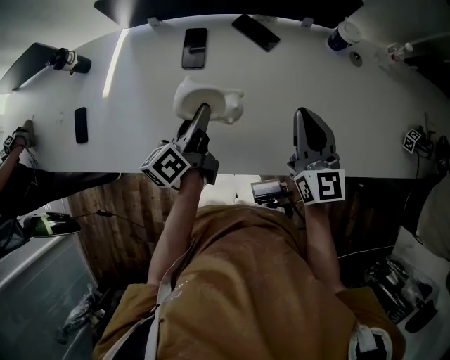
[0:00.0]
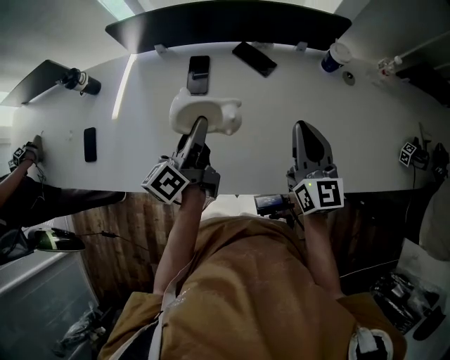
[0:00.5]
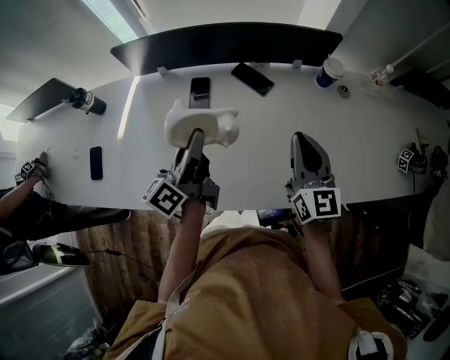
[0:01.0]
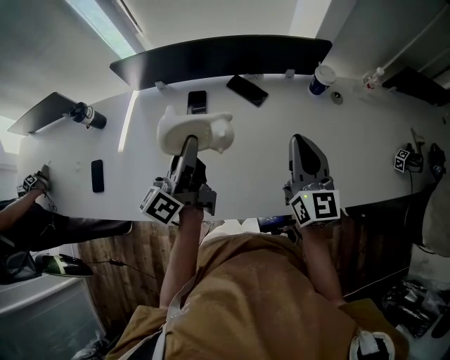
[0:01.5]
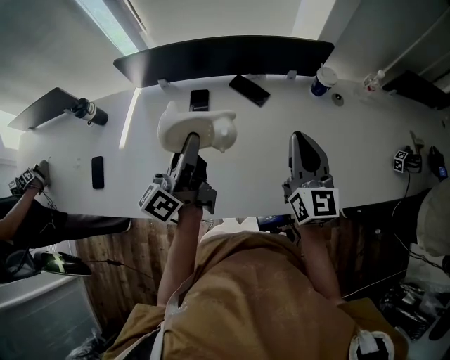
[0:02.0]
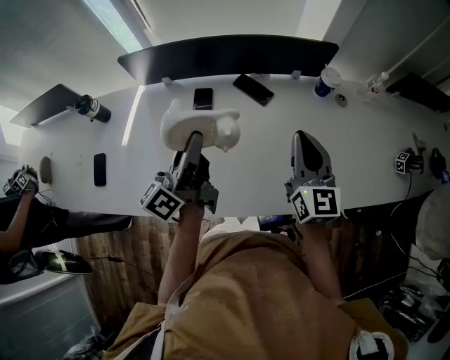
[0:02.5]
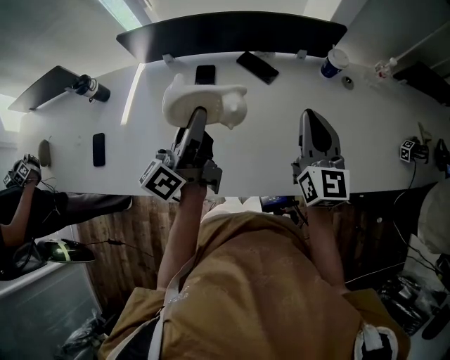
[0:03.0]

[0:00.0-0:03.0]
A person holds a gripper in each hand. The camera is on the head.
0.0 to 1.5 s: The left gripper travels upward by about 15 cm, and rotates some 20 degrees. The right gripper heads upward, covering roughly 5 cm.
1.5 to 3.0 s: There are only small adjustments of the grippers.

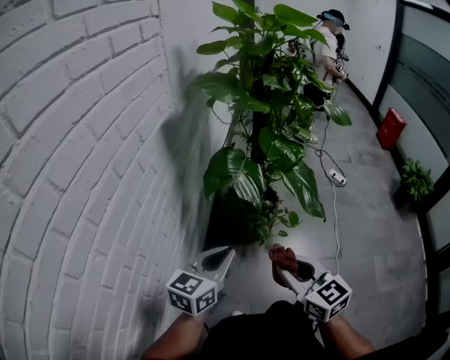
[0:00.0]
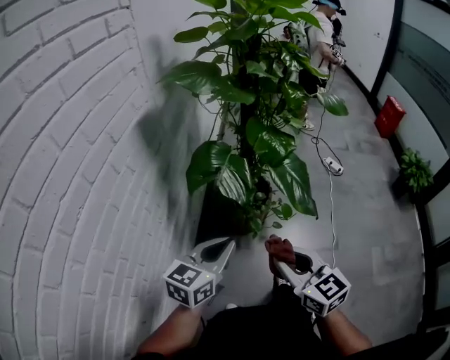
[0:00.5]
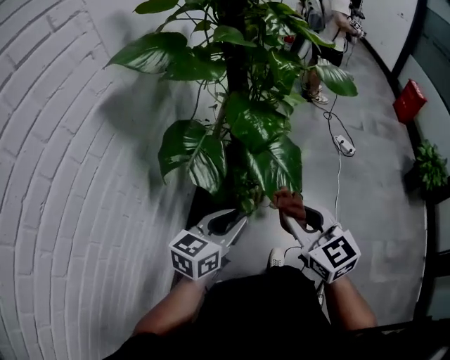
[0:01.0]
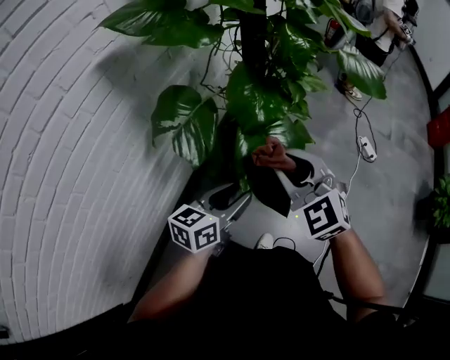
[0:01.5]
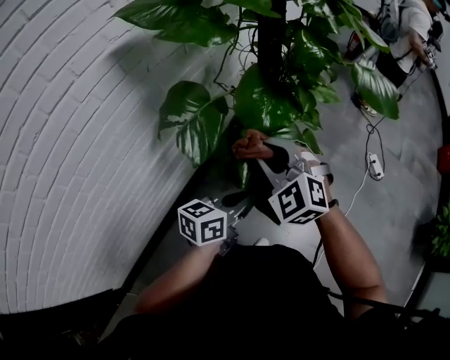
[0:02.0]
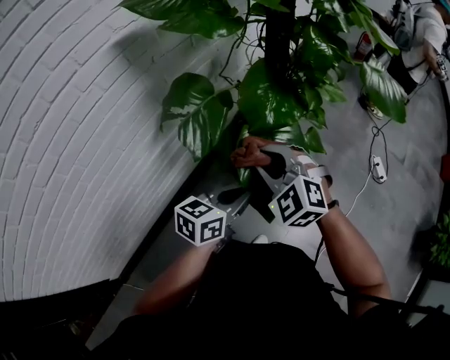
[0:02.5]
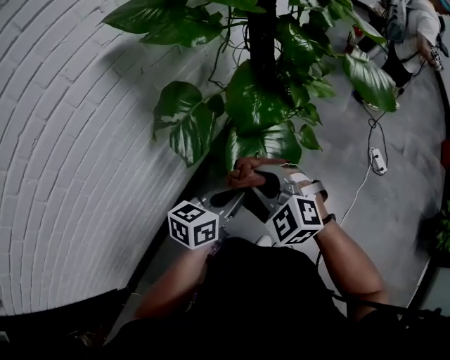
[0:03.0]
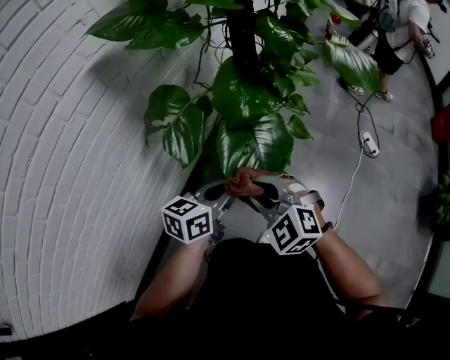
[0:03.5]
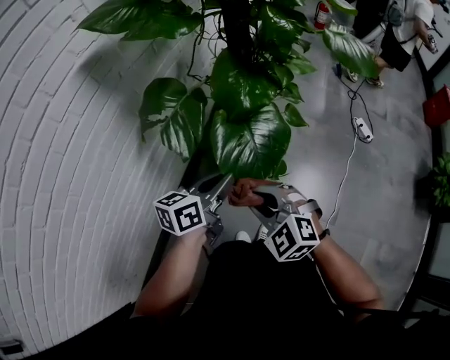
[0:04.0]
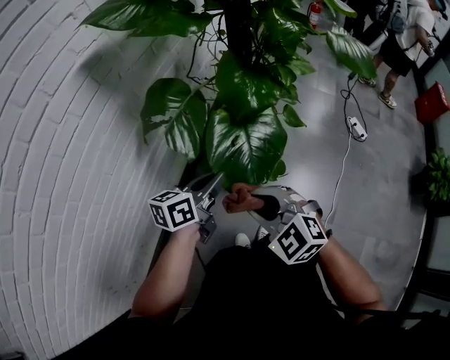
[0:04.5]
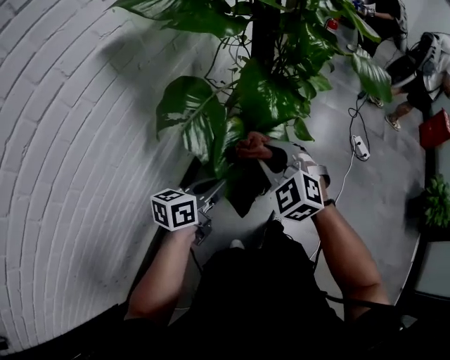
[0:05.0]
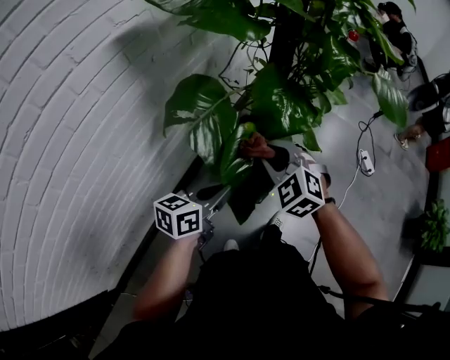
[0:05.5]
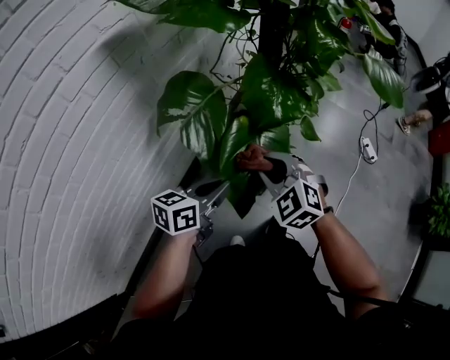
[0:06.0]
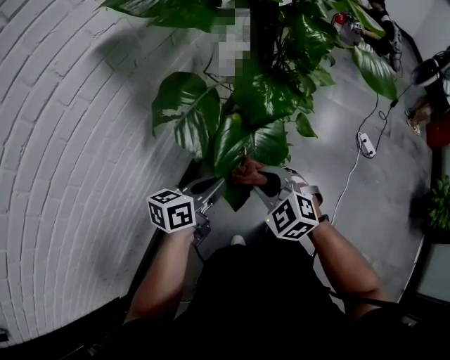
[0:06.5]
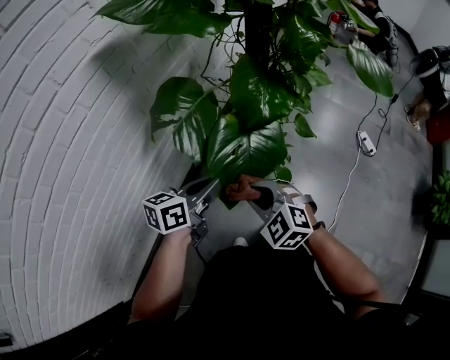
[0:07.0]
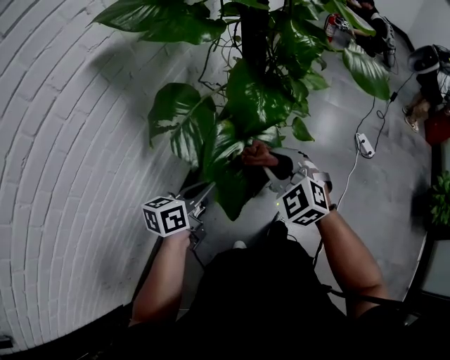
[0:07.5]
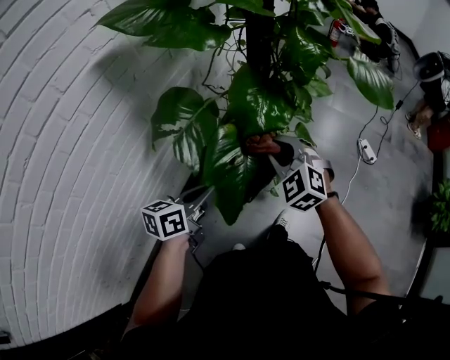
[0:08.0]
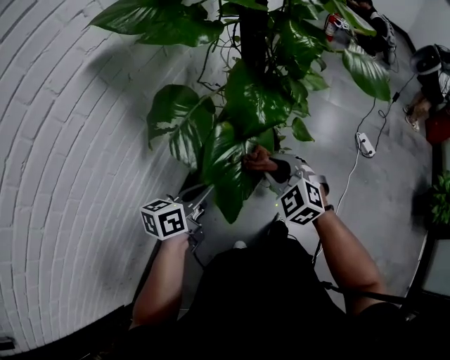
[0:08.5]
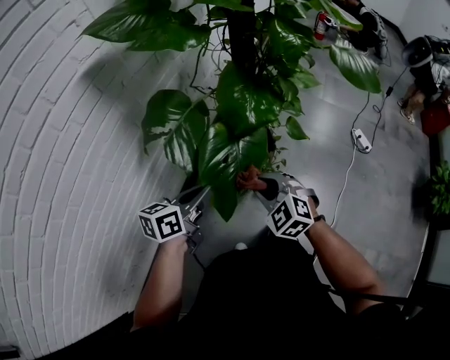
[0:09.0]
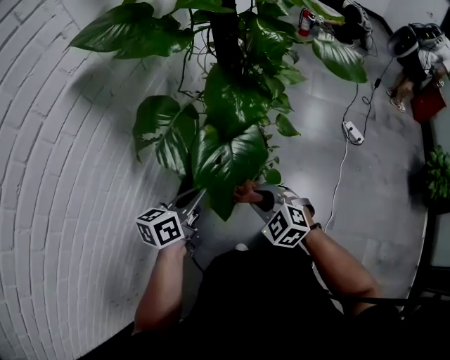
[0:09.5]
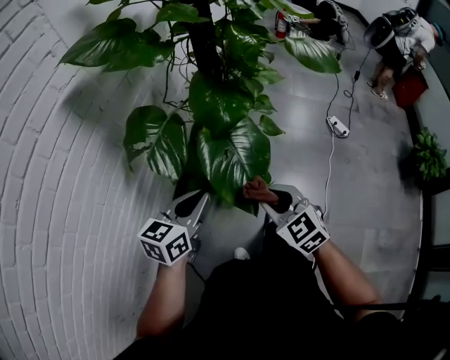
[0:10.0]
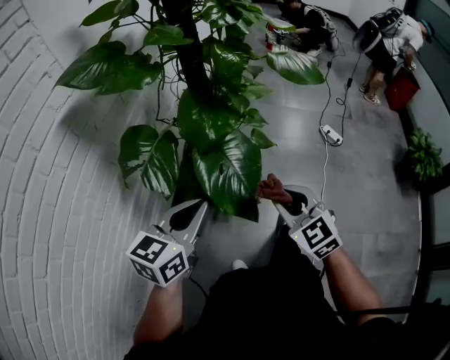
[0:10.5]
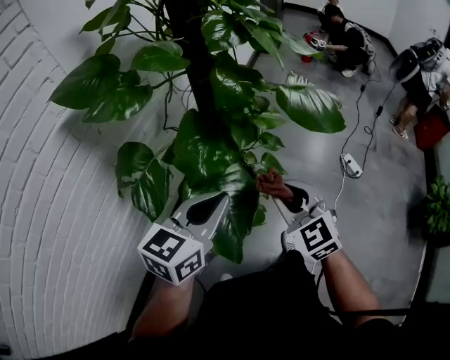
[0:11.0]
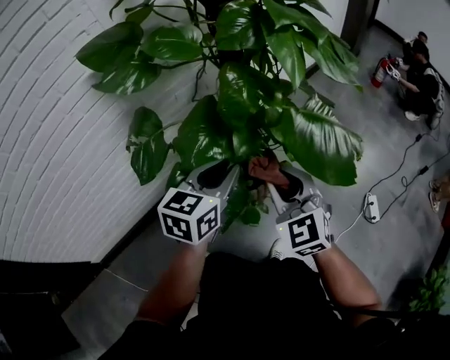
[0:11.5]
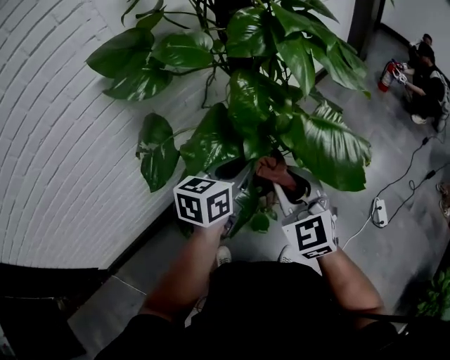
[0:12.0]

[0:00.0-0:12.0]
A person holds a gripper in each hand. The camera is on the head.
0.0 to 2.0 s: The right gripper heads forward and to the right, covering some 30 cm, and rotates around the line of its fingers by some 60 degrees, counterclockwise from behind. The left gripper is displaced to the right and forward by some 30 cm, rotates about 20 degrees, and opens, then closes again.
2.0 to 4.0 s: The right gripper goes roughly 15 cm backward and downward.
4.0 to 6.0 s: The right gripper travels forward by about 10 cm; the left gripper goes some 5 cm to the left.
6.0 to 8.0 s: The right gripper shifts approximately 5 cm forward.
8.0 to 10.0 s: The left gripper ends up approximately 5 cm from where it was, and changes its angle by about 20 degrees. Meanwhile the right gripper moves backward, approximately 15 cm, and rotates about 30 degrees.
10.0 to 12.0 s: The right gripper ends up roughly 30 cm from where it was, and swivels about 30 degrees; the left gripper shifts by about 30 cm, and changes its angle by some 30 degrees.

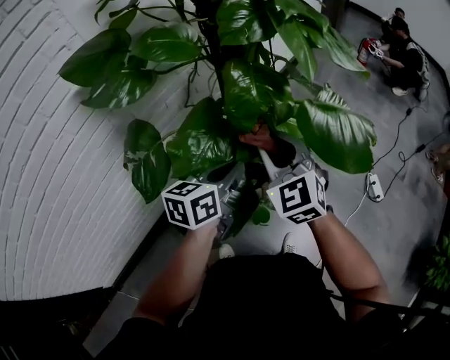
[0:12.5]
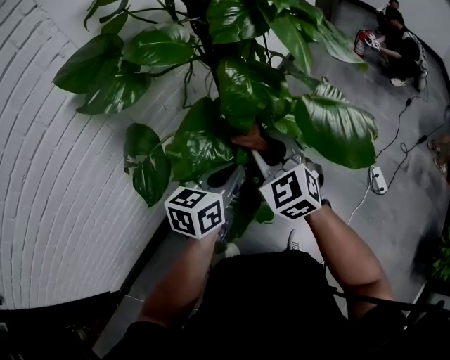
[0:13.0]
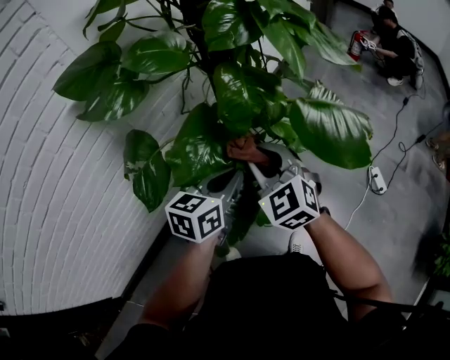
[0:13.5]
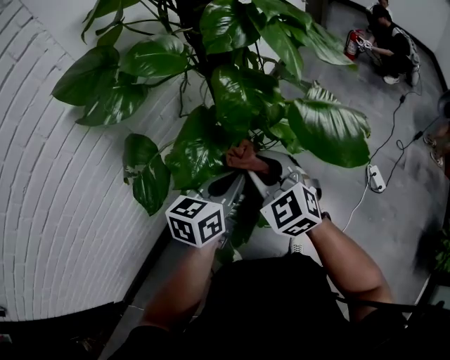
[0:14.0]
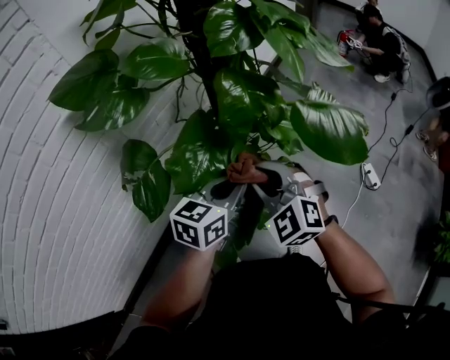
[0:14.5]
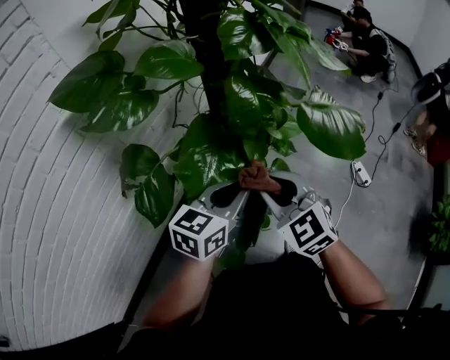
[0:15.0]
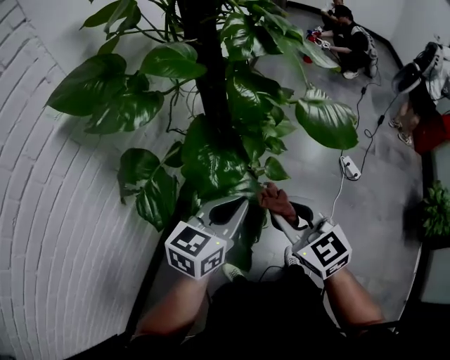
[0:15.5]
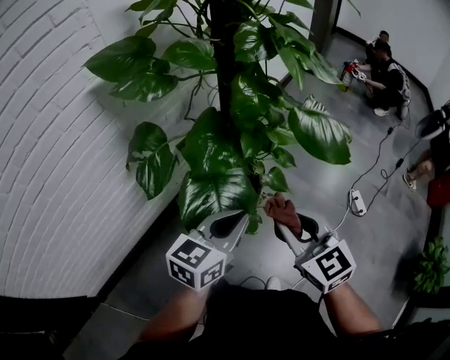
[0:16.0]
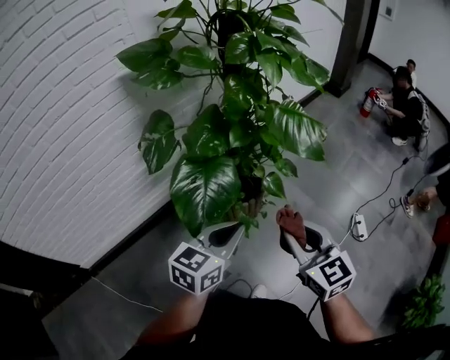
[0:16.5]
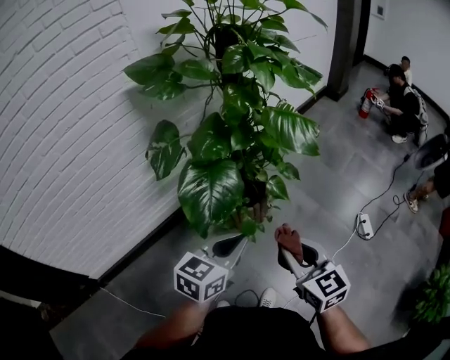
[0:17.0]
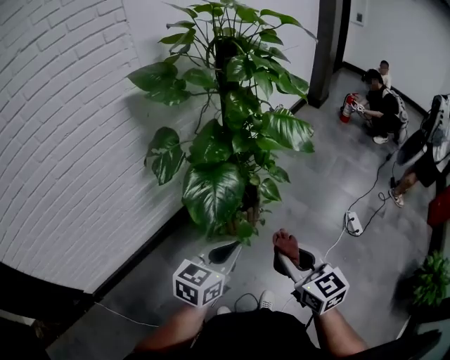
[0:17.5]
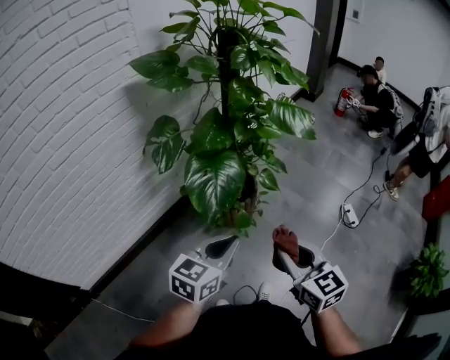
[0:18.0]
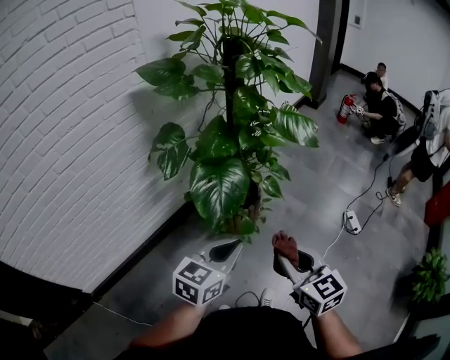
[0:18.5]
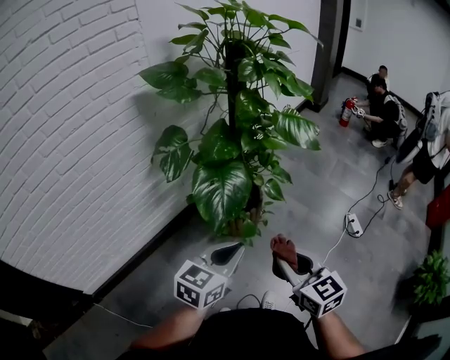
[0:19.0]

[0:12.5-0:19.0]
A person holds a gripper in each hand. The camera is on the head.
12.5 to 14.5 s: The right gripper heads backward, covering about 5 cm.
14.5 to 17.0 s: Both grippers travel together backward and to the right, approximately 30 cm. The right gripper rotates around the line of its fingers by about 40 degrees, clockwise from behind.
17.0 to 19.0 s: Both grippers travel together backward and to the left, approximately 10 cm.

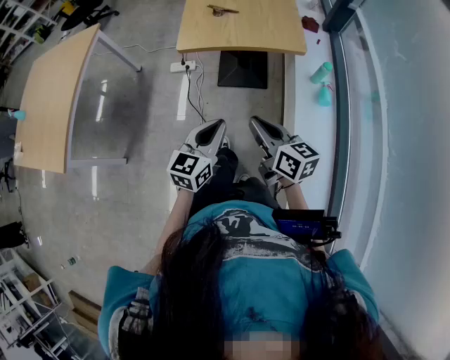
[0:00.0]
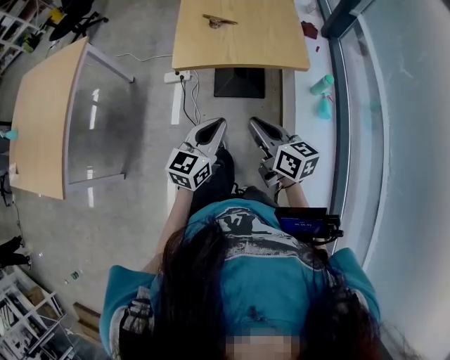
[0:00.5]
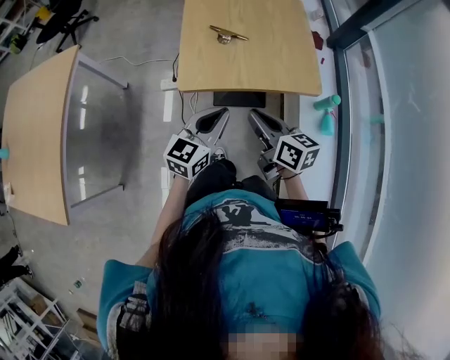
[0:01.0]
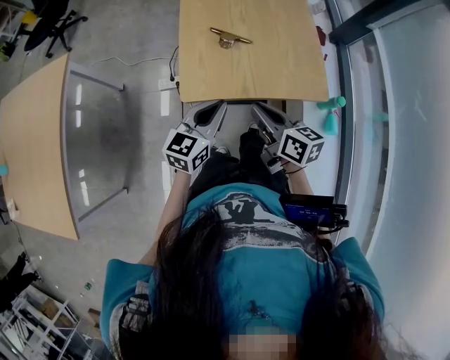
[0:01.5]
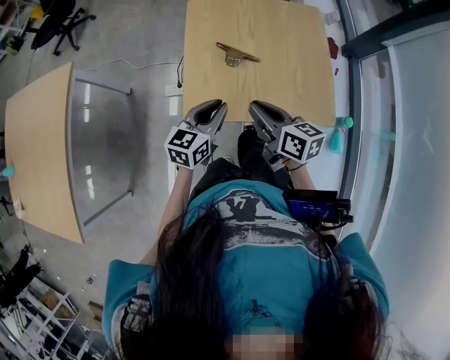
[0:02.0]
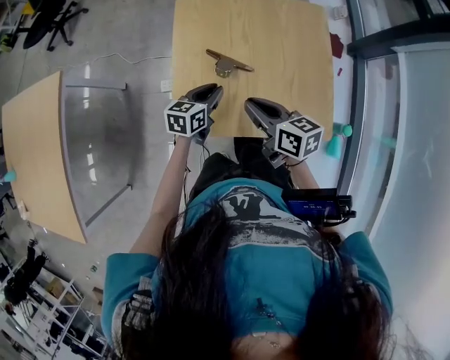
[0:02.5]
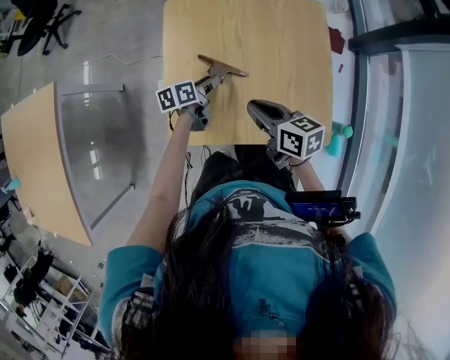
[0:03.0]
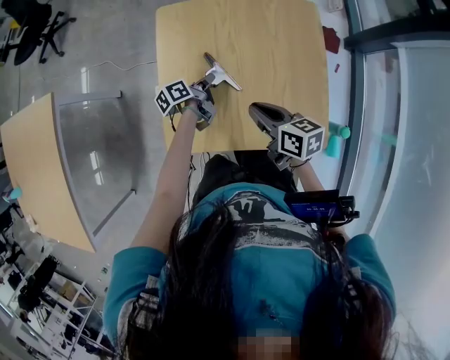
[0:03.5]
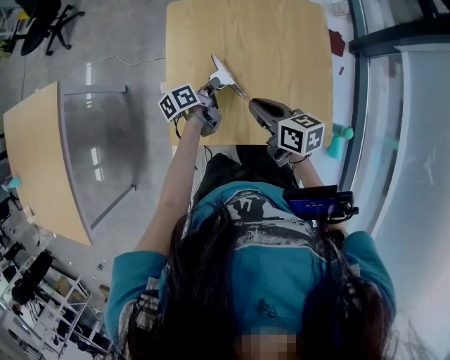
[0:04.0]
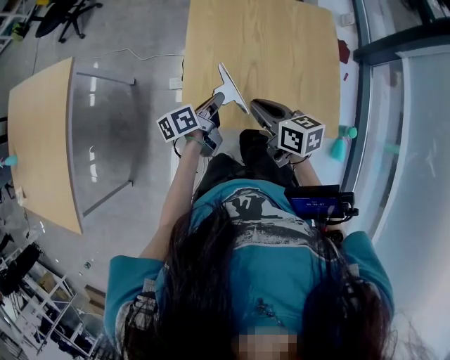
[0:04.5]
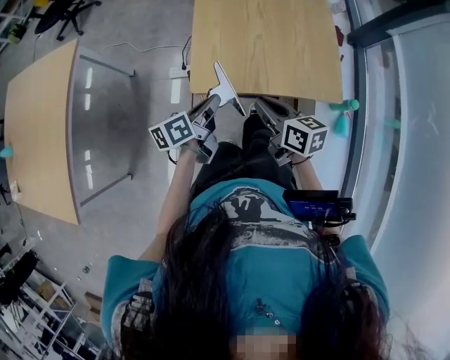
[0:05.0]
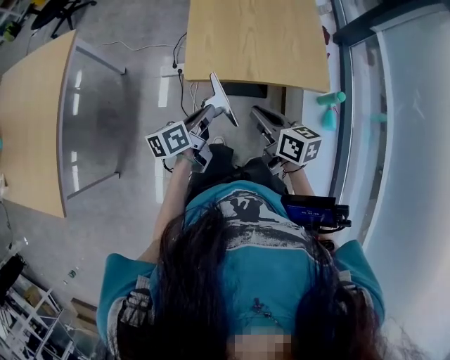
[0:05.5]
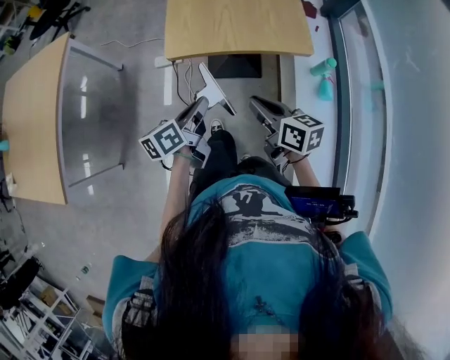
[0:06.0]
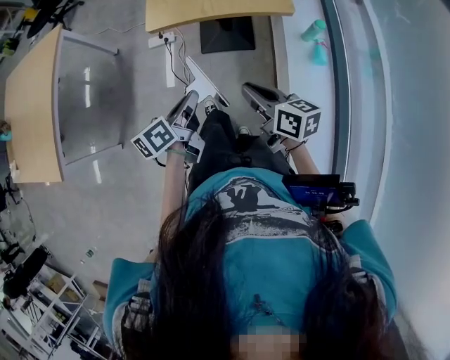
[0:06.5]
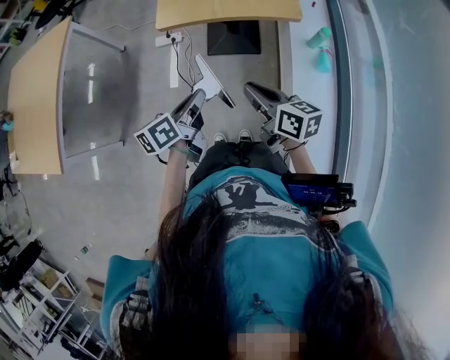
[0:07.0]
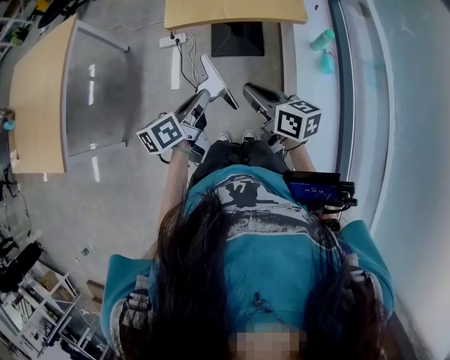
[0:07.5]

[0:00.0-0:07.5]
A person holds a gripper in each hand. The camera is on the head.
0.0 to 2.0 s: The pair of grippers is taken forward, approximately 50 cm.
2.0 to 4.0 s: The right gripper moves forward, to the right and downward, about 15 cm. Meanwhile the left gripper goes some 25 cm forward and downward, rolls counterclockwise, seen from behind, by some 60 degrees, and opens and closes again.
4.0 to 5.5 s: Both grippers move backward, some 35 cm.
5.5 to 7.5 s: The grippers both shift backward by roughly 25 cm.
